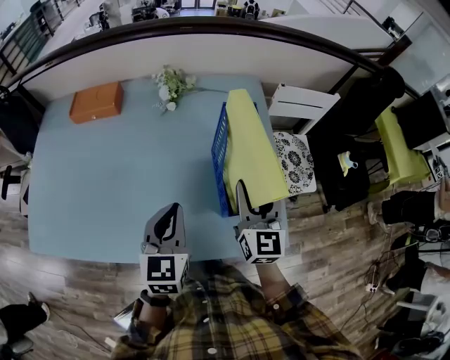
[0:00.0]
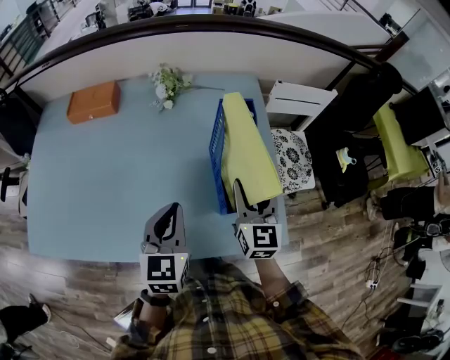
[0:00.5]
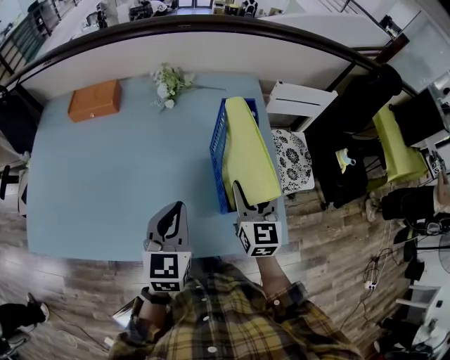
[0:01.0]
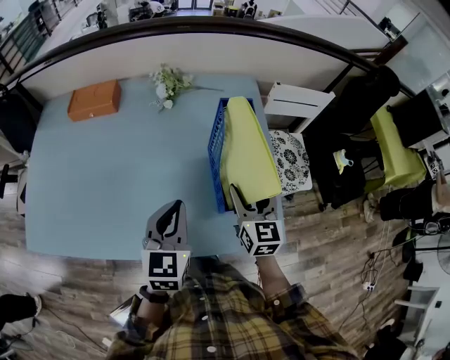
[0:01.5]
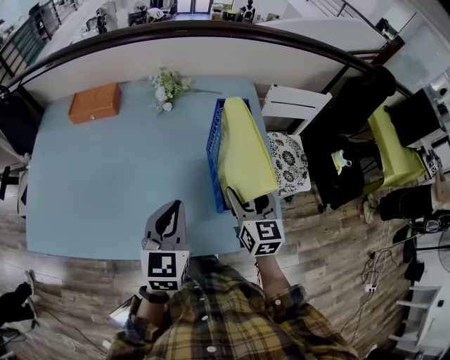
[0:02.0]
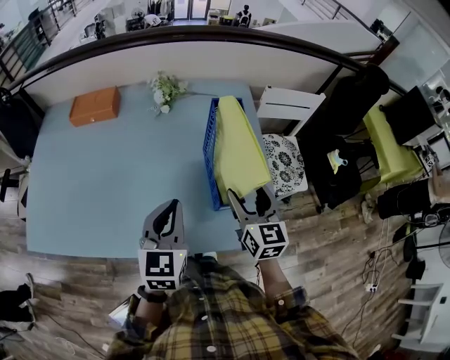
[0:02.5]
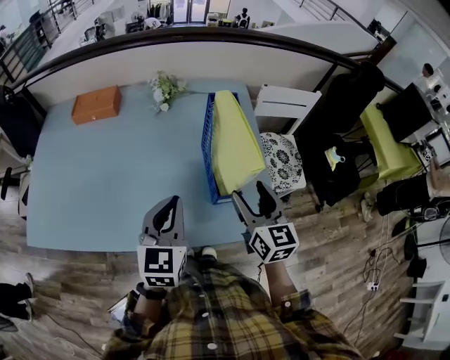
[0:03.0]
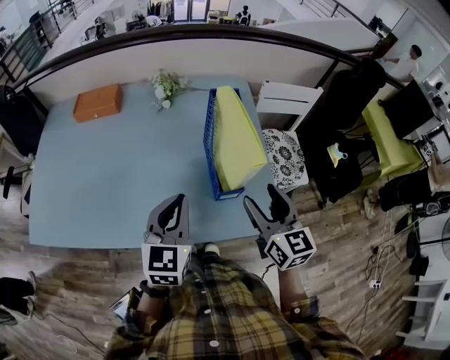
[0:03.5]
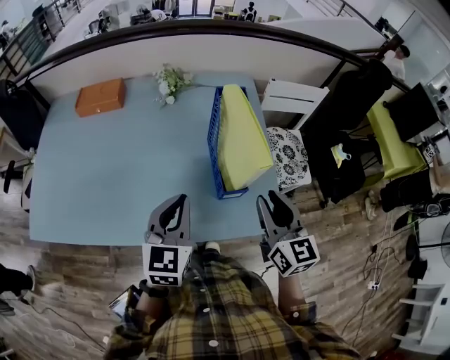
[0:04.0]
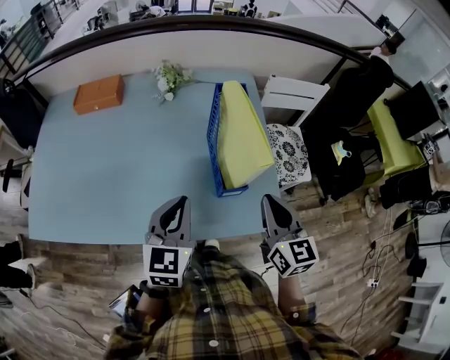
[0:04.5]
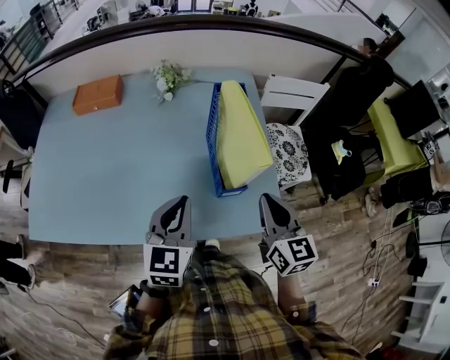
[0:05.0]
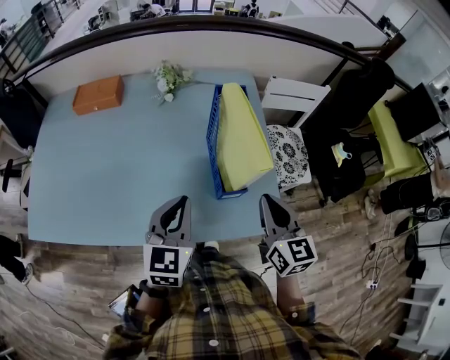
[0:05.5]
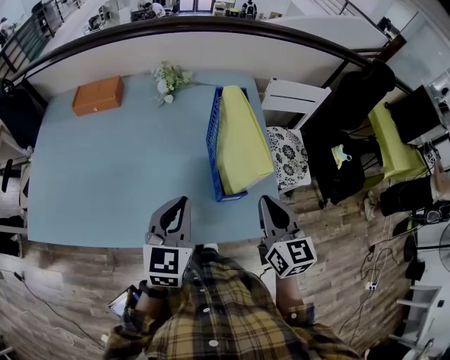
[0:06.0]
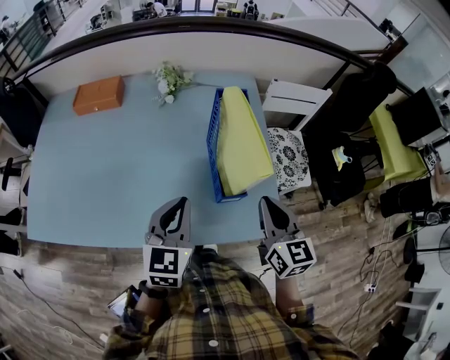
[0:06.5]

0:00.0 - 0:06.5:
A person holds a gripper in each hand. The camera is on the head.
0:00.0 - 0:02.0: The right gripper is displaced downward by roughly 5 cm, and opens.
0:02.0 - 0:04.5: The left gripper shifts some 5 cm backward; the right gripper travels backward and upward by about 10 cm, and closes up.
0:04.5 - 0:06.5: There are only small adjustments of the grippers.

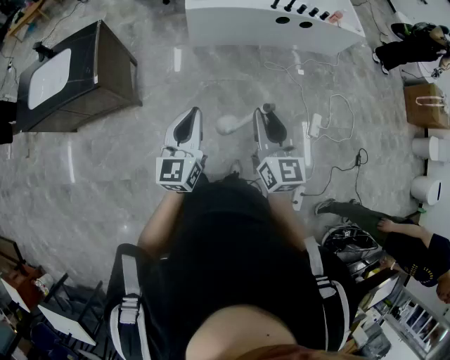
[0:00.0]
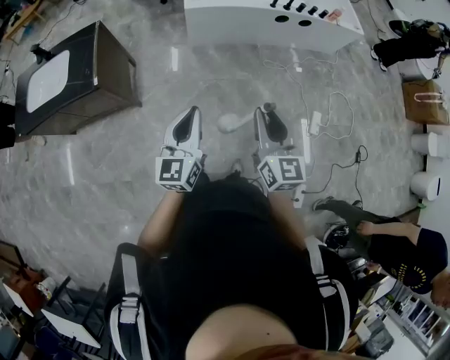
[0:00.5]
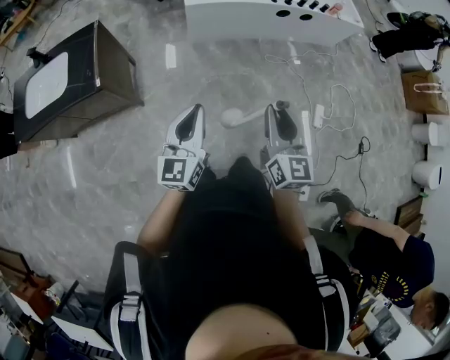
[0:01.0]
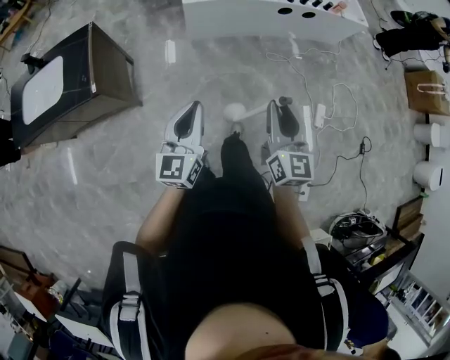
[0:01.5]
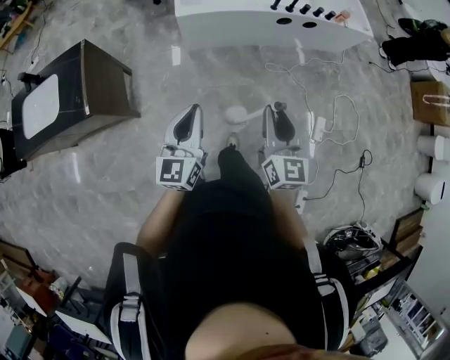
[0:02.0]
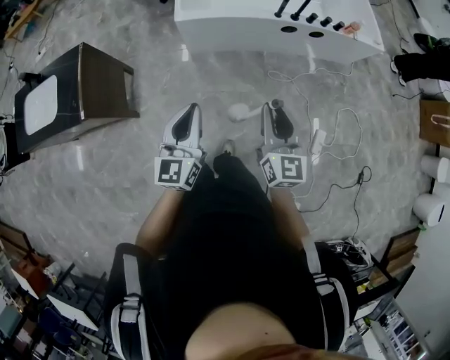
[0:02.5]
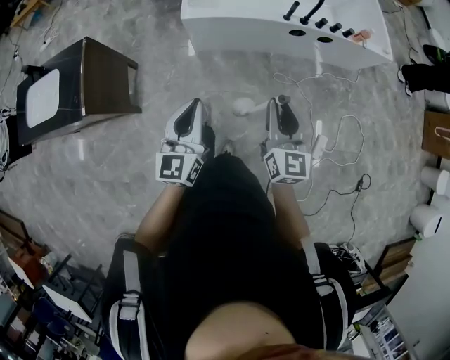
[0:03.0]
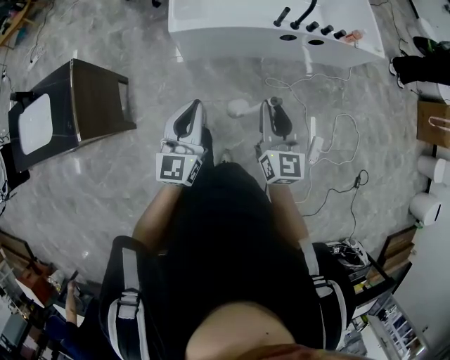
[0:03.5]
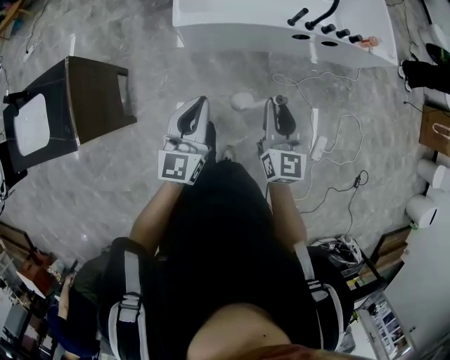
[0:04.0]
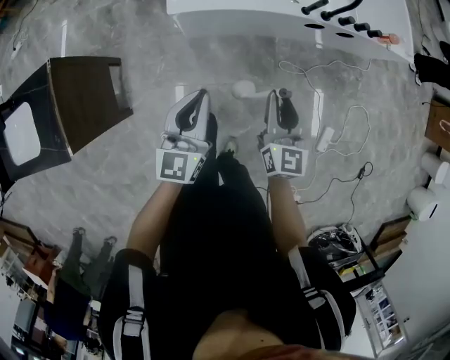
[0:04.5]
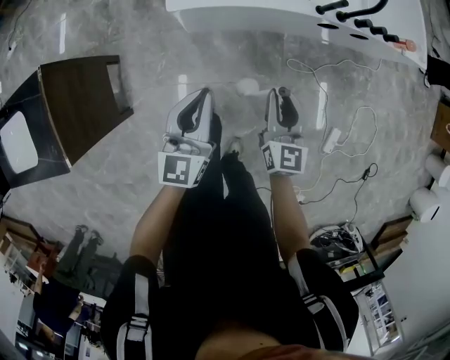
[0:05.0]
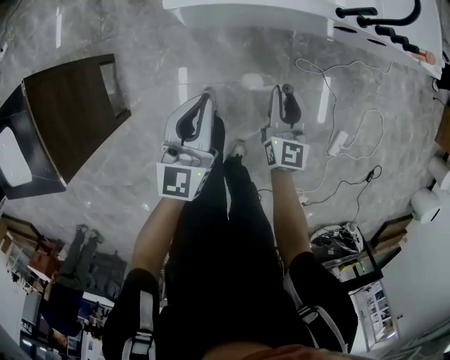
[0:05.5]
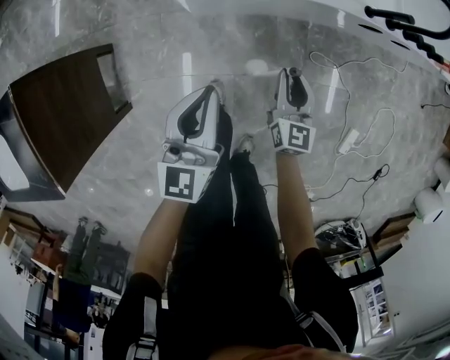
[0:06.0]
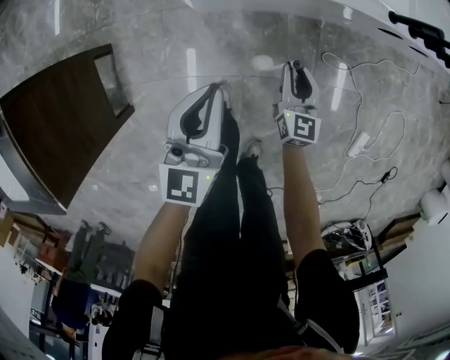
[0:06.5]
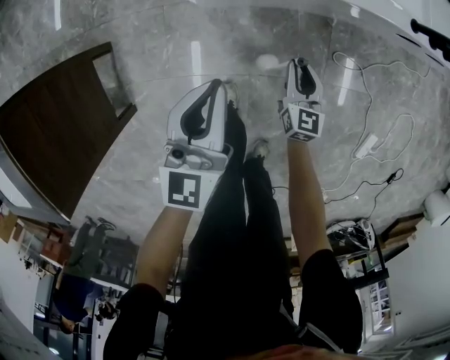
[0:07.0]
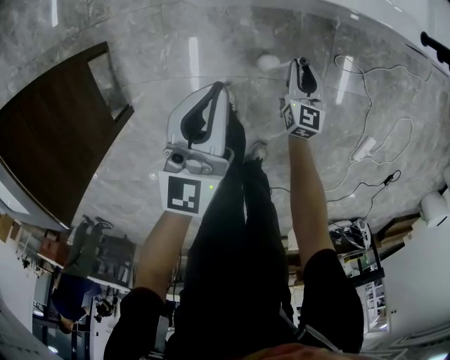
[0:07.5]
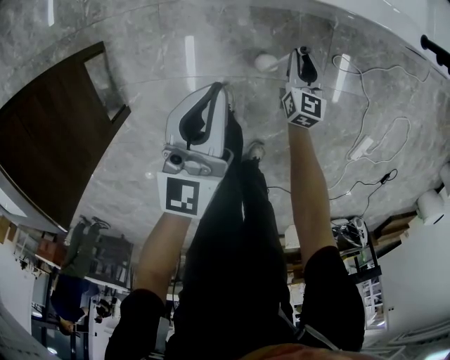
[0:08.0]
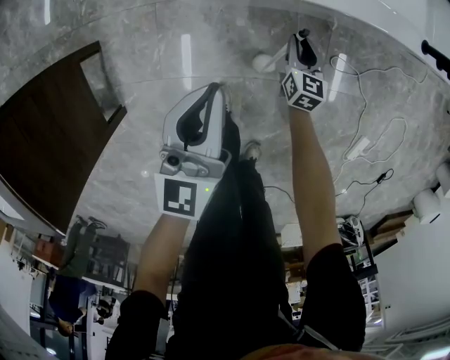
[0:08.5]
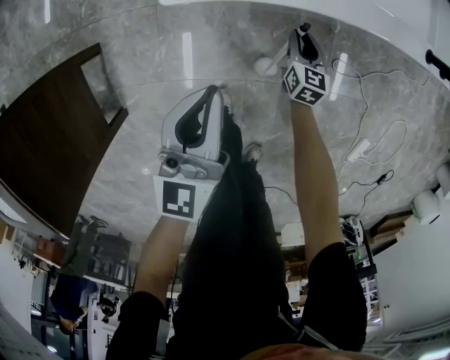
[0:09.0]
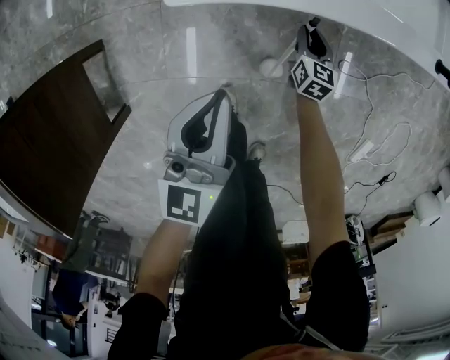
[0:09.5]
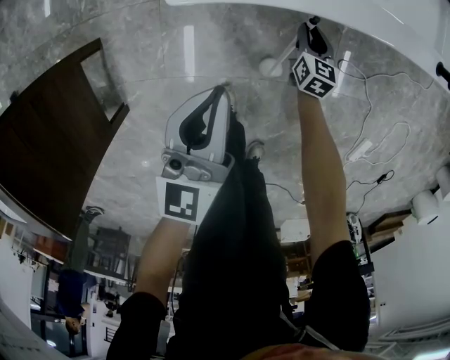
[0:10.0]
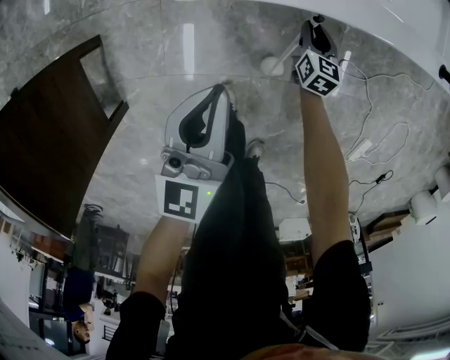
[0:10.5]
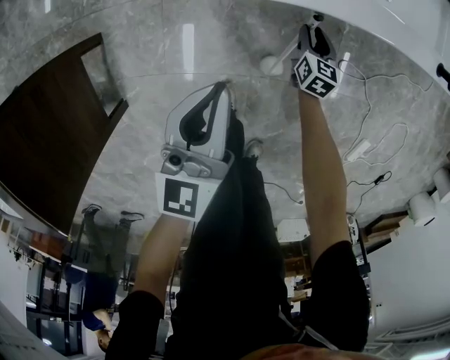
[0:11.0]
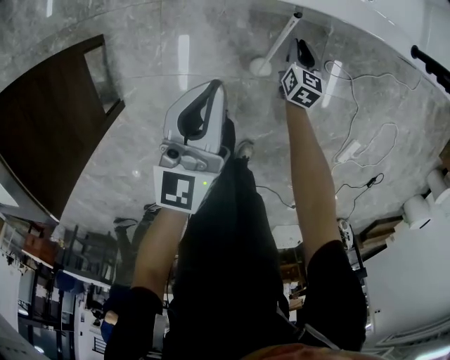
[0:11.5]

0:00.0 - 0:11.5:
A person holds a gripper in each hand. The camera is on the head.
0:00.0 - 0:02.0: Both grippers move forward, about 20 cm.
0:02.0 - 0:04.0: The grippers both shift forward by roughly 25 cm.
0:04.0 - 0:06.0: Both grippers move downward and forward, some 35 cm.
0:06.0 - 0:07.5: The left gripper goes approximately 15 cm downward and forward. Meanwhile the right gripper heads downward, covering some 20 cm.
0:07.5 - 0:09.5: The left gripper moves approximately 5 cm. The right gripper is displaced forward and downward by approximately 15 cm.
0:09.5 - 0:11.5: Both grippers move upward, about 5 cm.

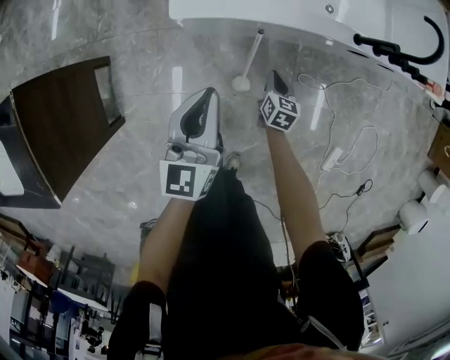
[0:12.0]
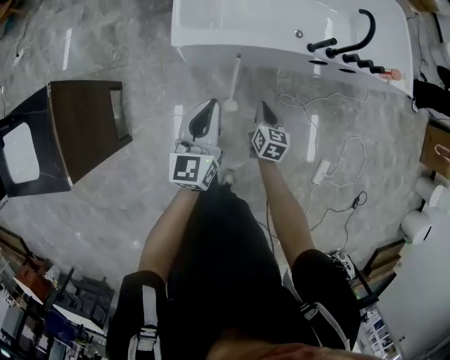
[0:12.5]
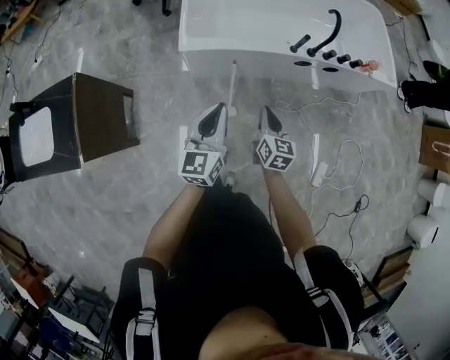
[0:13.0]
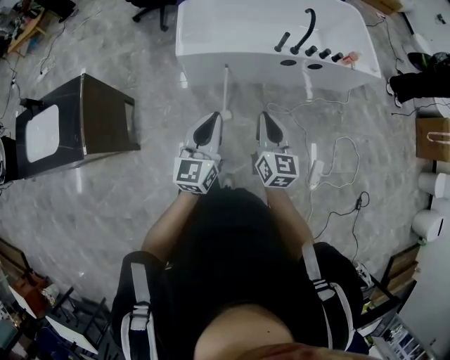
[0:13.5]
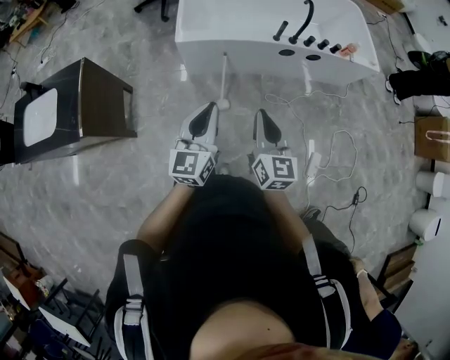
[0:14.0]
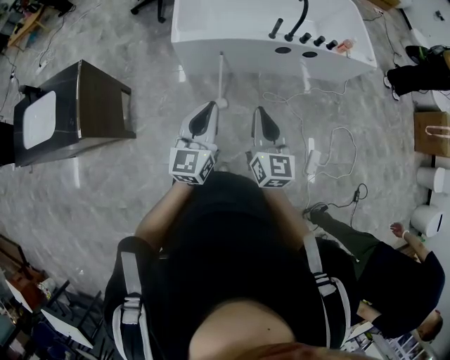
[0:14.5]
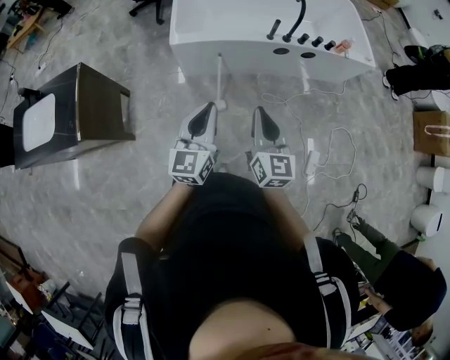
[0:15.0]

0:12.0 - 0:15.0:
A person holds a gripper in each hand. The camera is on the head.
0:12.0 - 0:13.5: The left gripper goes some 40 cm backward, upward and to the right. The right gripper goes about 60 cm upward and backward, and points its fingers some 30 degrees further upward.
0:13.5 - 0:15.0: The right gripper is displaced backward by some 5 cm. The left gripper changes place by approximately 5 cm.

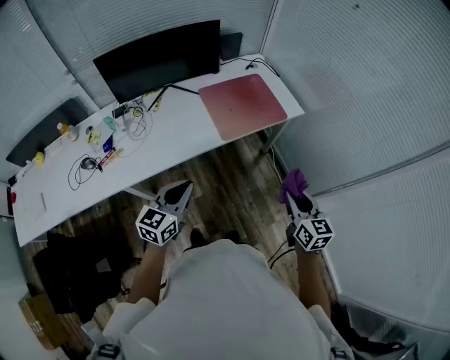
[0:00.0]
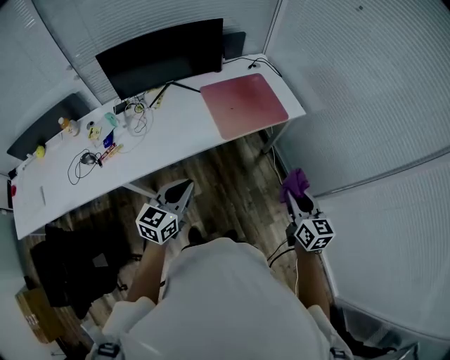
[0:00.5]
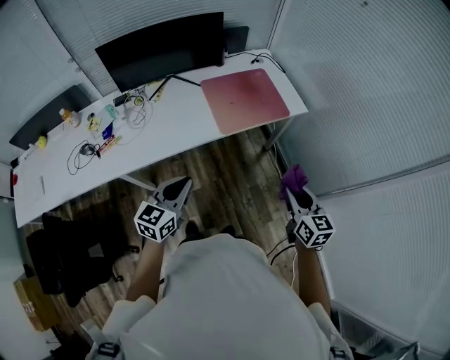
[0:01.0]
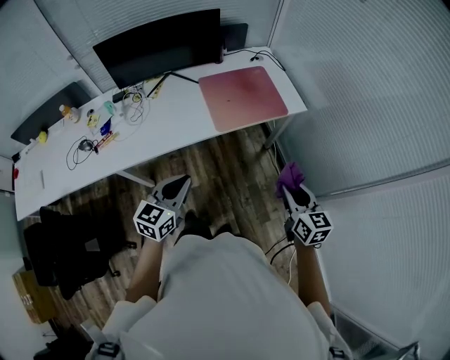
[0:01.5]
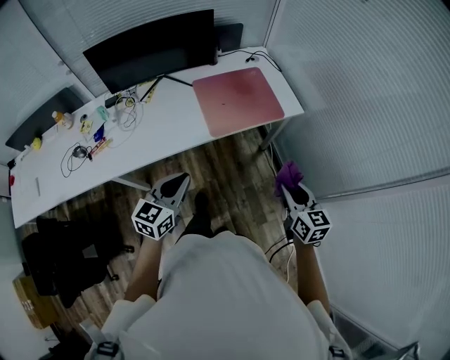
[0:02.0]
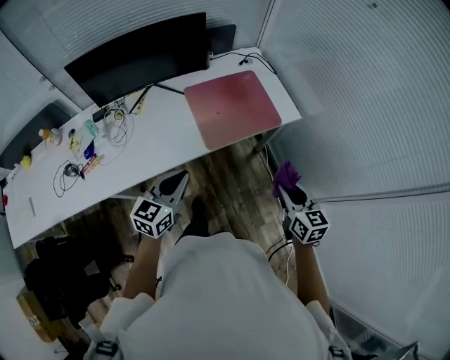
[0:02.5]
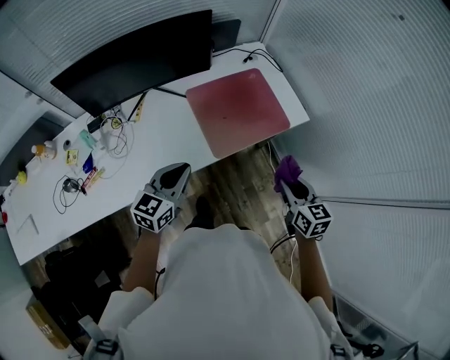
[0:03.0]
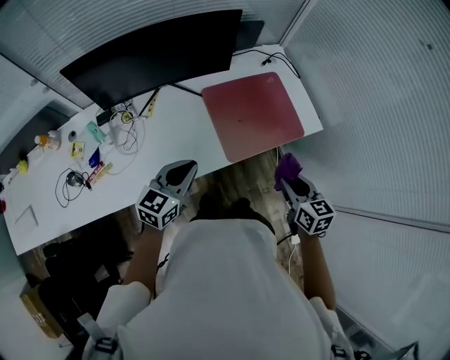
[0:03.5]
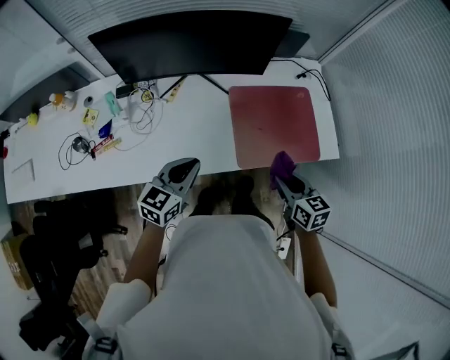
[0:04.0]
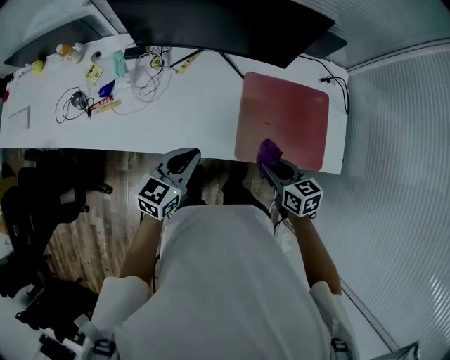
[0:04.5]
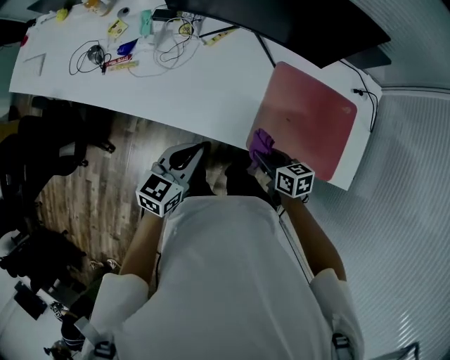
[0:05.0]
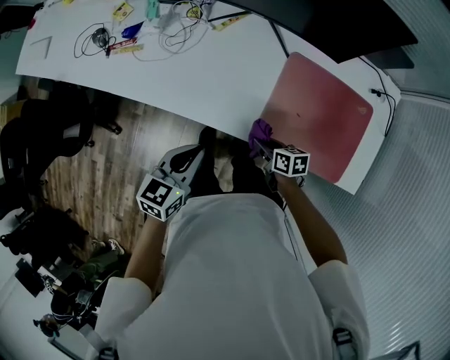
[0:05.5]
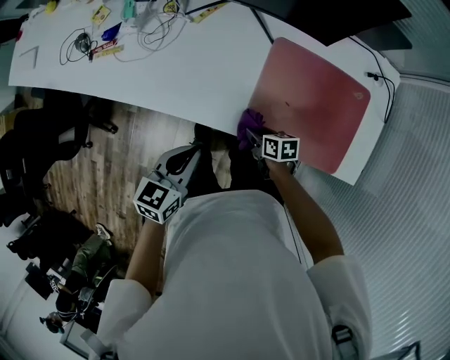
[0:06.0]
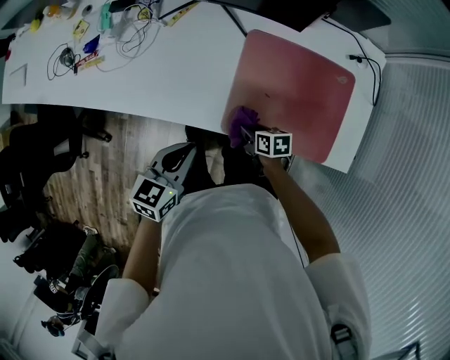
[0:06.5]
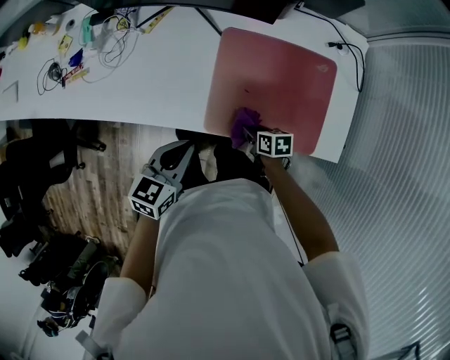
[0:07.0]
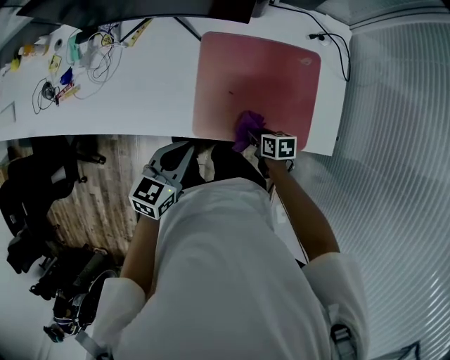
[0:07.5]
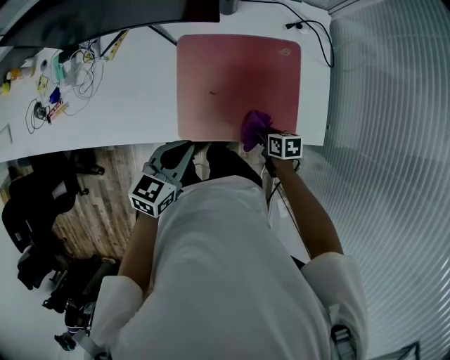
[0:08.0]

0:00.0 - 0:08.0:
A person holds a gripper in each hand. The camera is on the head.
0:00.0 - 0:02.0: The left gripper travels to the right by roughly 5 cm; the right gripper is displaced forward and to the right by approximately 10 cm.
0:02.0 - 0:04.0: The two grippers go approximately 30 cm forward and to the left. The right gripper changes its angle by approximately 20 degrees.
0:04.0 - 0:06.0: The right gripper goes approximately 30 cm downward, and rotates approximately 40 degrees. The left gripper shifts roughly 10 cm downward, and swivels roughly 30 degrees.
0:06.0 - 0:08.0: Both grippers move to the right, roughly 20 cm. The left gripper changes its angle by about 20 degrees.
